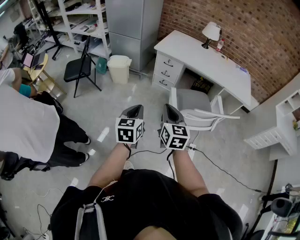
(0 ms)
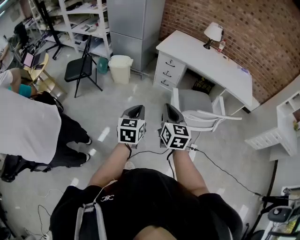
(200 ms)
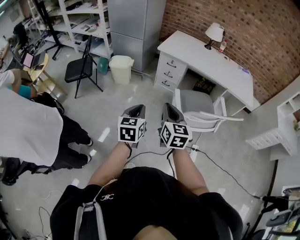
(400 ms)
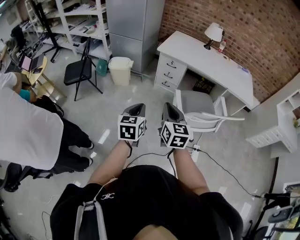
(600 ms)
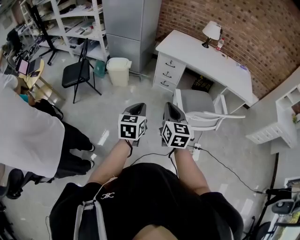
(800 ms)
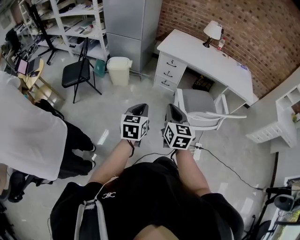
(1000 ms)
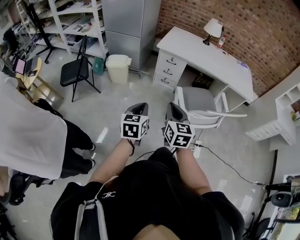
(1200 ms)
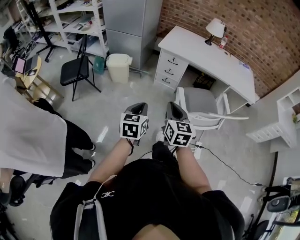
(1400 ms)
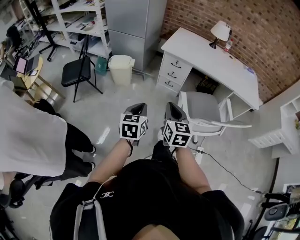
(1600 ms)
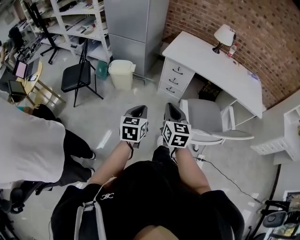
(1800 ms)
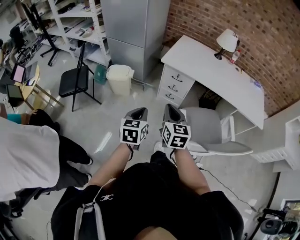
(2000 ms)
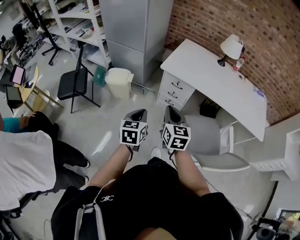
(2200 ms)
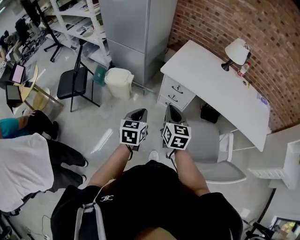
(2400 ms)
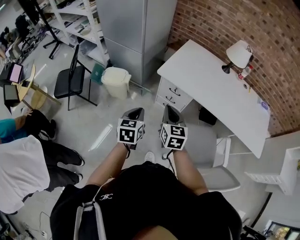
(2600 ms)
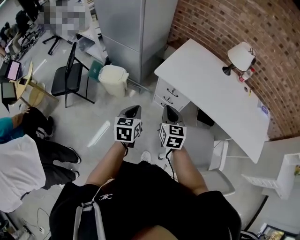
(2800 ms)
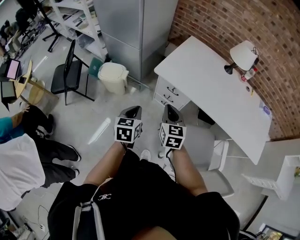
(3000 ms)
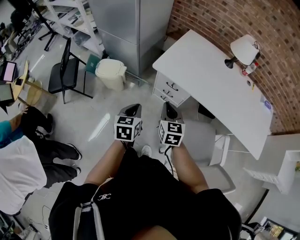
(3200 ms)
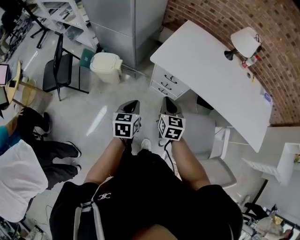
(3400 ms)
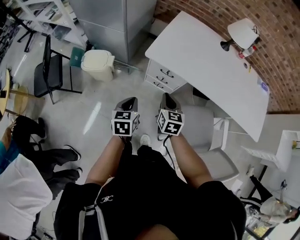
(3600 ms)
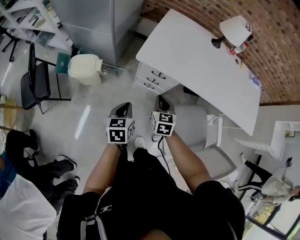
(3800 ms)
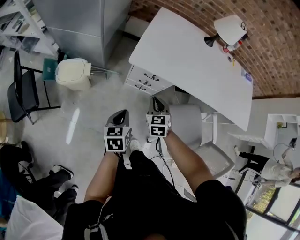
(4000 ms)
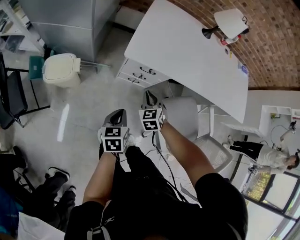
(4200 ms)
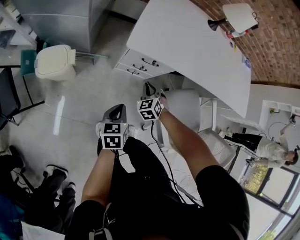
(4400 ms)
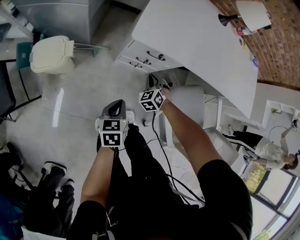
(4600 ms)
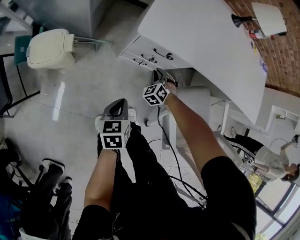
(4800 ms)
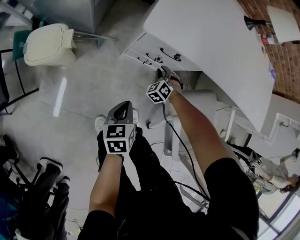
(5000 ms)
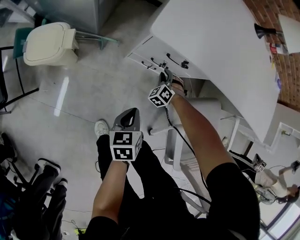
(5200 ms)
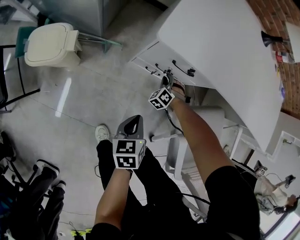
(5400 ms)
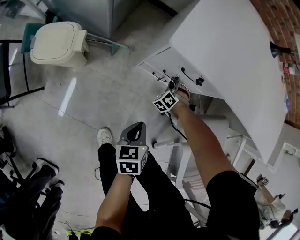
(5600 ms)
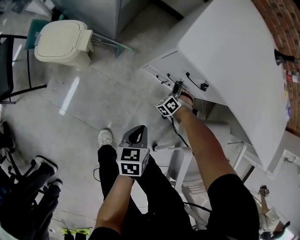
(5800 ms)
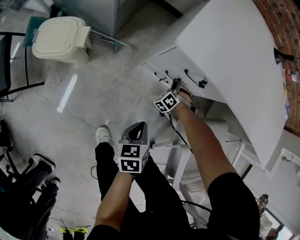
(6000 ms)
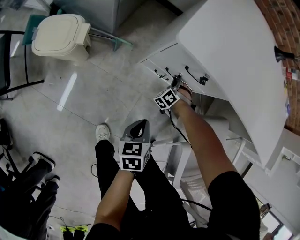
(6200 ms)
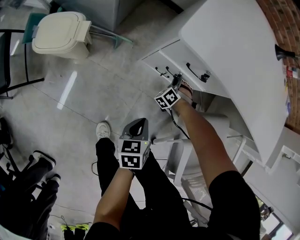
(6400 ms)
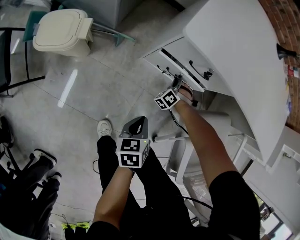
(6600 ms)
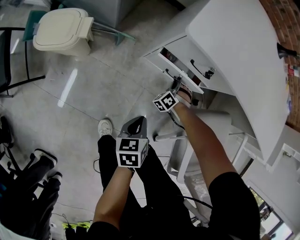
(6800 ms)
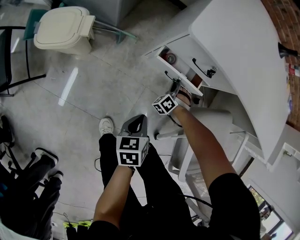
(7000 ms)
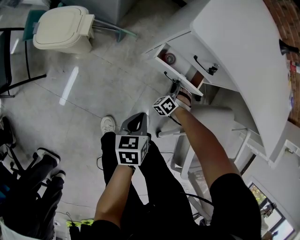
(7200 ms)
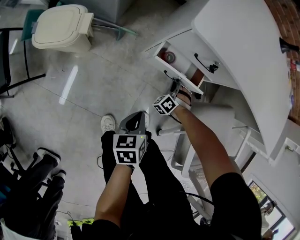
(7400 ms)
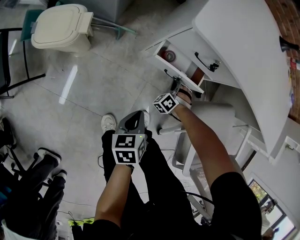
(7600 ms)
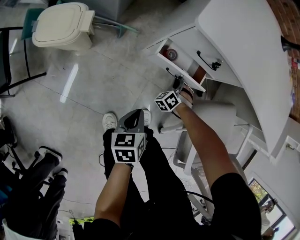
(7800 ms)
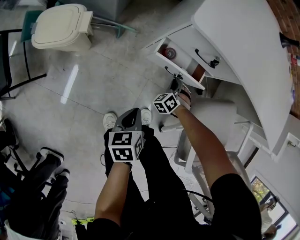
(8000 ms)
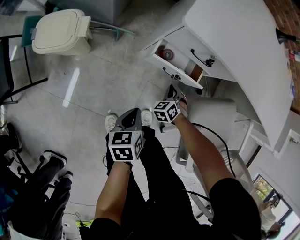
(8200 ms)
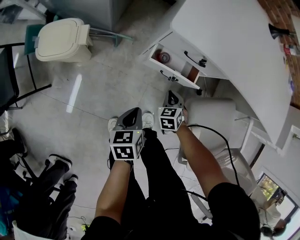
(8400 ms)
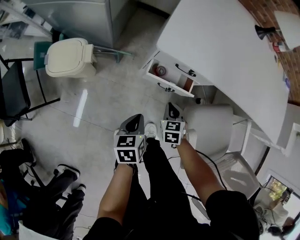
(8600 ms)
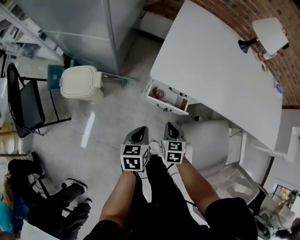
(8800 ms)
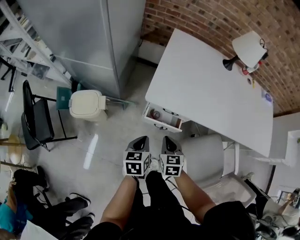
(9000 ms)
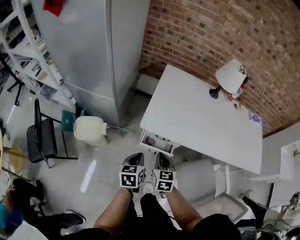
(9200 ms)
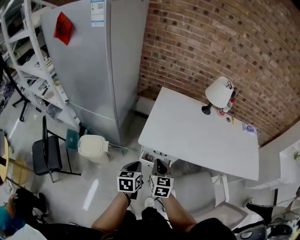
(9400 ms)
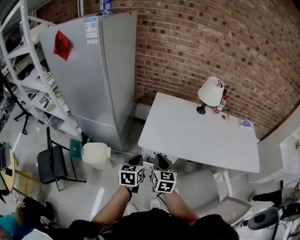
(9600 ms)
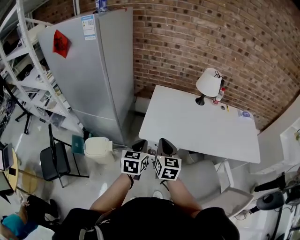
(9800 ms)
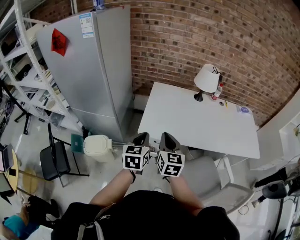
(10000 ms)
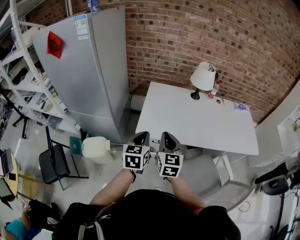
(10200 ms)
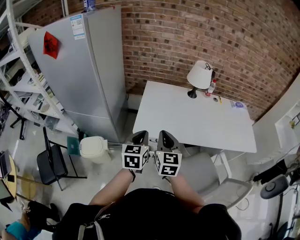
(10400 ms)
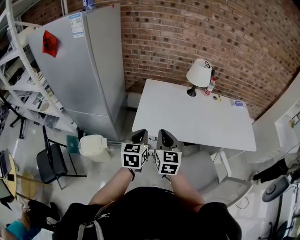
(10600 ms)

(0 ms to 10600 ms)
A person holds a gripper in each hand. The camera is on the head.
0 ms - 1600 ms: Both grippers travel together forward and to the left, about 15 cm.
1600 ms - 3000 ms: The two grippers travel together, forward, approximately 40 cm.
3000 ms - 4600 ms: The grippers both shift downward by some 35 cm. The left gripper rotates roughly 30 degrees; the right gripper changes its angle by some 50 degrees.
4600 ms - 6000 ms: The right gripper heads downward and forward, covering approximately 25 cm, and turns by some 30 degrees, while the left gripper moves downward, some 15 cm.
6000 ms - 7600 ms: The right gripper heads backward, covering about 10 cm. Meanwhile the left gripper shifts by some 5 cm.
7600 ms - 9000 ms: The left gripper goes some 25 cm upward. Meanwhile the right gripper goes some 40 cm upward, and rotates around the line of its fingers by approximately 70 degrees, clockwise from behind.
9000 ms - 10600 ms: The grippers both shift upward by about 30 cm. The left gripper turns by approximately 30 degrees. The right gripper tips its fingers upward by some 30 degrees.

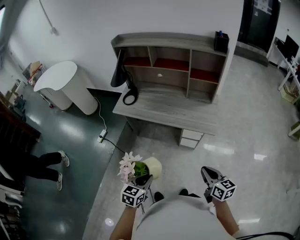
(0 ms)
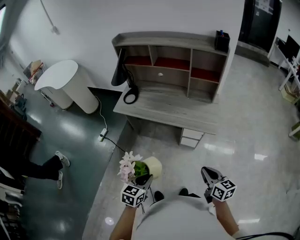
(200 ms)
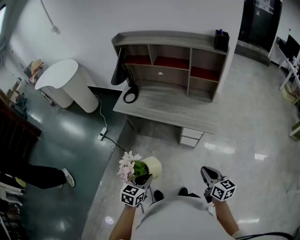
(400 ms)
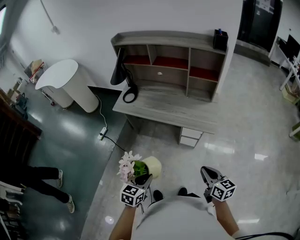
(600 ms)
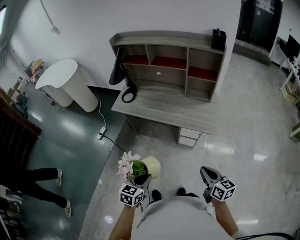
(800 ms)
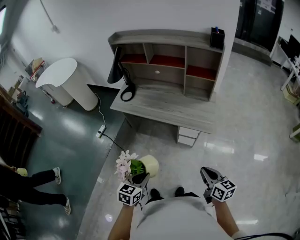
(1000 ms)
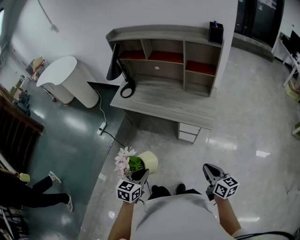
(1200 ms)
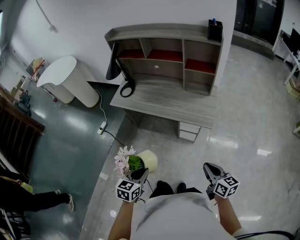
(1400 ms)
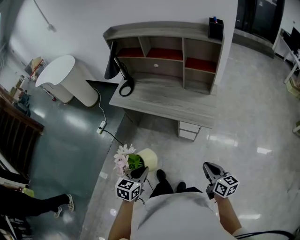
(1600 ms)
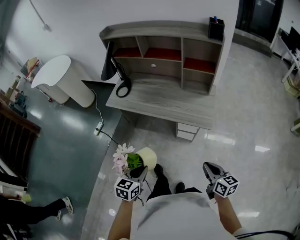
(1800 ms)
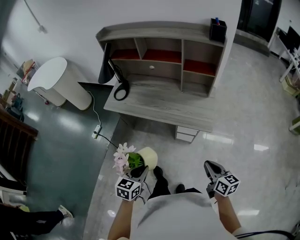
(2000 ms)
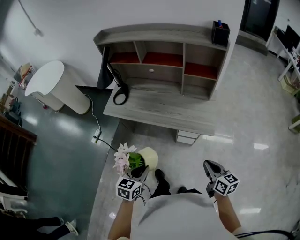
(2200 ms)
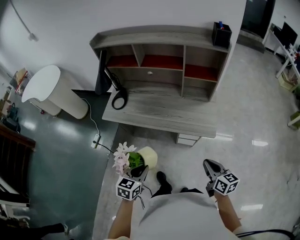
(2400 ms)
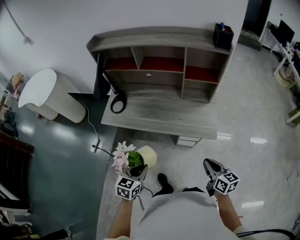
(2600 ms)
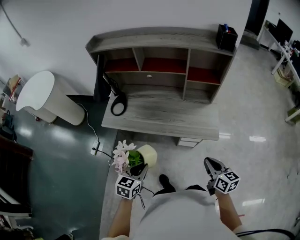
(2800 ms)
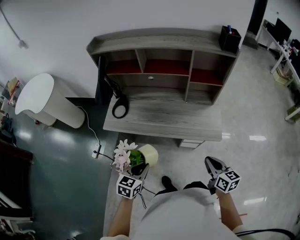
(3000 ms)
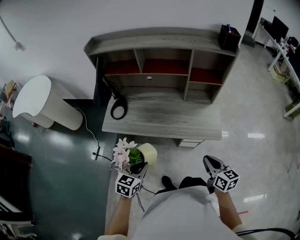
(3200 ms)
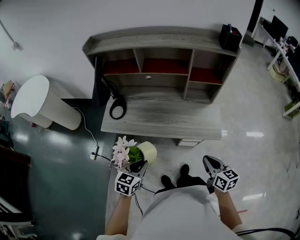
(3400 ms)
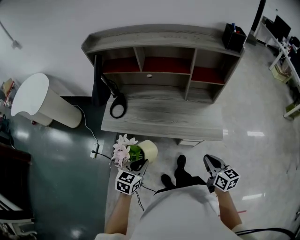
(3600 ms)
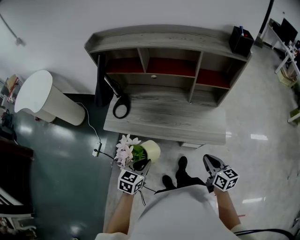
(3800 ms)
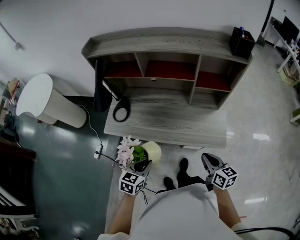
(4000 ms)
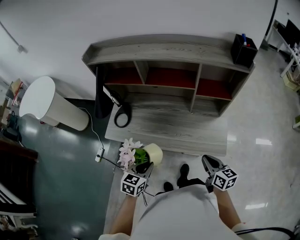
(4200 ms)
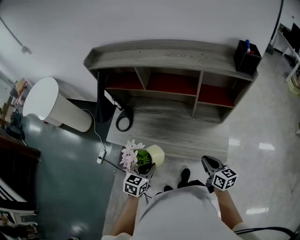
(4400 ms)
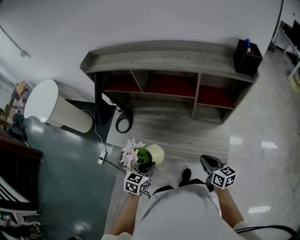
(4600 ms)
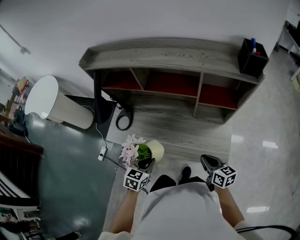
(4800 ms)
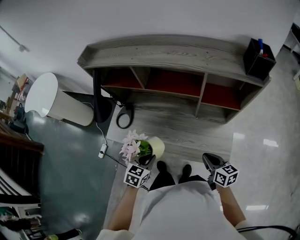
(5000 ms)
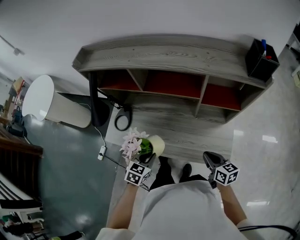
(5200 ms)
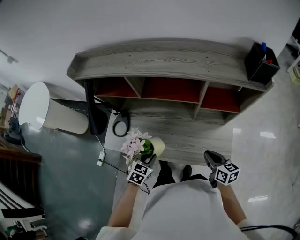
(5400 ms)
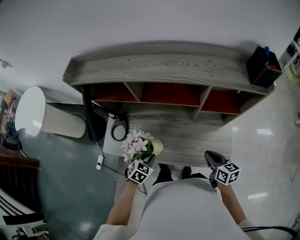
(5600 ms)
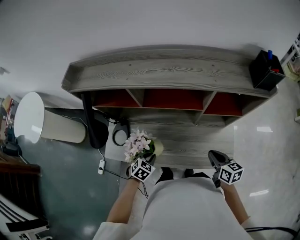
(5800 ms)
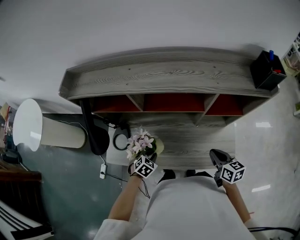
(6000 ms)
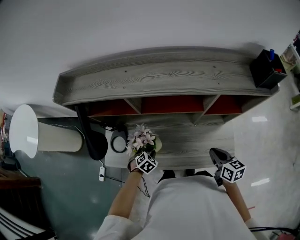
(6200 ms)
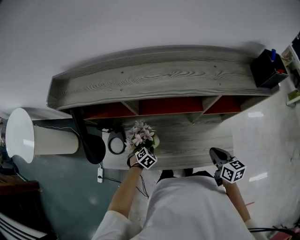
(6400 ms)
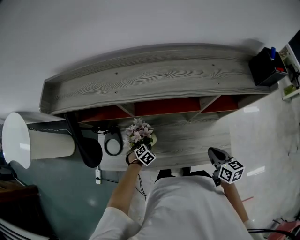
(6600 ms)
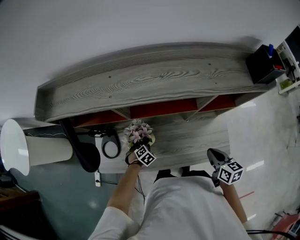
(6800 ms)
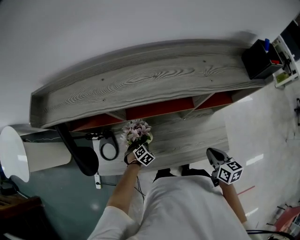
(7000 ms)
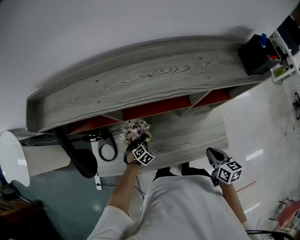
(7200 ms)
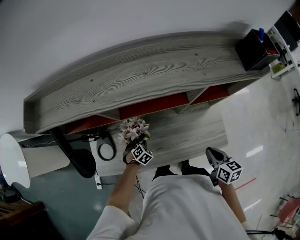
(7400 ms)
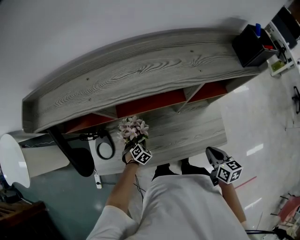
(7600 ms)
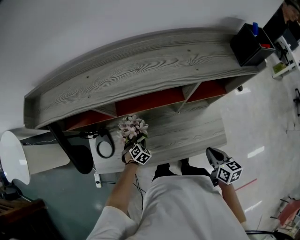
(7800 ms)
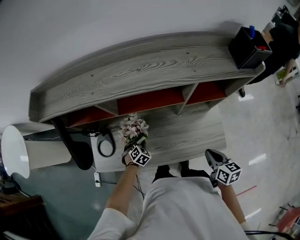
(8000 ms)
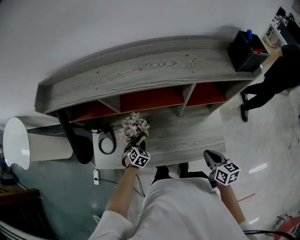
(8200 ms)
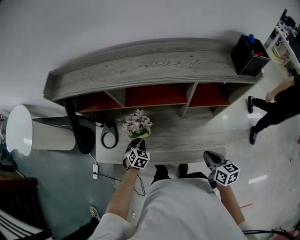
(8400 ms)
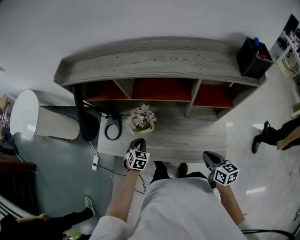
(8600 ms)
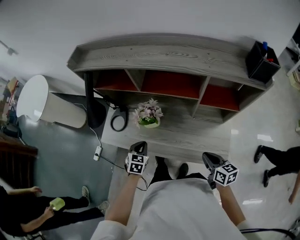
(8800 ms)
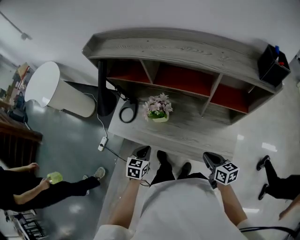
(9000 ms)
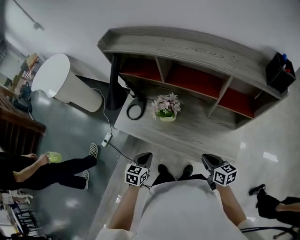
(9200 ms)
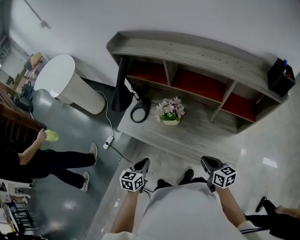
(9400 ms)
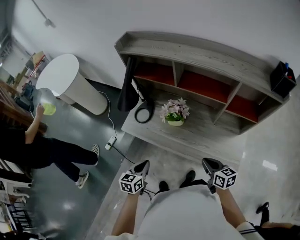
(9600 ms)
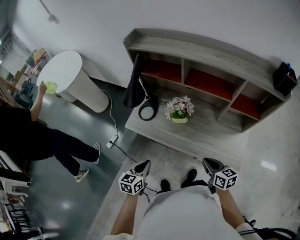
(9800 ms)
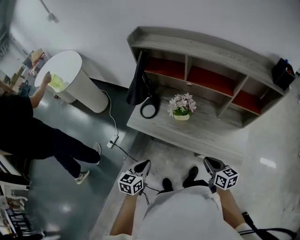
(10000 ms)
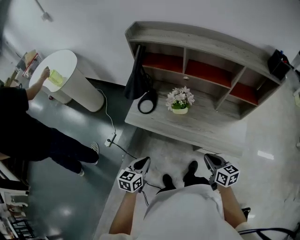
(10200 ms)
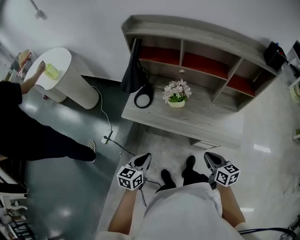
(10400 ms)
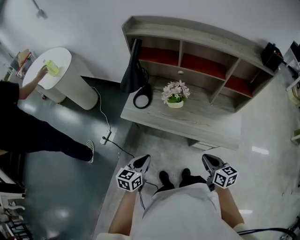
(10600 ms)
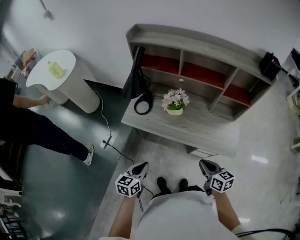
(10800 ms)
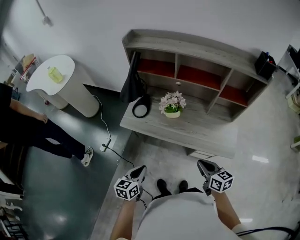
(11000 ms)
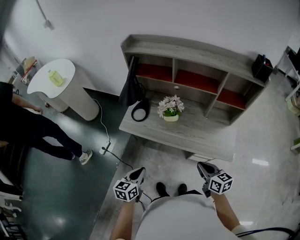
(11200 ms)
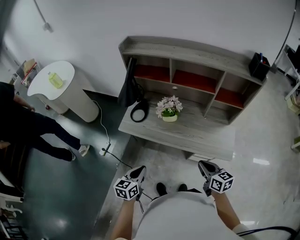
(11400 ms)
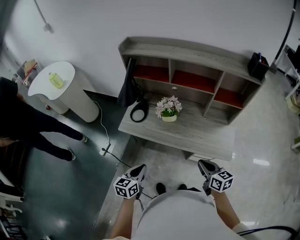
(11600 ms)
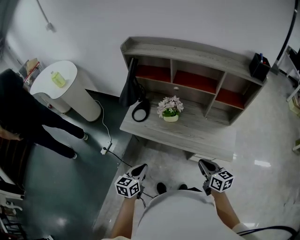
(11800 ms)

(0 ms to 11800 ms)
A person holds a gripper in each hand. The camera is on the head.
0 ms - 1400 ms: The right gripper moves to the right, roughly 10 cm. The left gripper shifts by about 5 cm.
1400 ms - 3000 ms: The grippers both shift forward and to the left by roughly 25 cm.
3000 ms - 4400 ms: The two grippers go approximately 15 cm forward.
4400 ms - 6000 ms: The right gripper shifts approximately 15 cm forward. The left gripper travels forward and downward by approximately 25 cm, and swivels some 40 degrees.
6000 ms - 7400 ms: The left gripper heads downward and forward, covering some 15 cm, and turns by approximately 20 degrees.
7400 ms - 8800 ms: The left gripper heads upward, covering about 15 cm, and rotates around the line of its fingers by approximately 40 degrees, counterclockwise from behind. Meanwhile the right gripper swivels about 30 degrees.
8800 ms - 10400 ms: The right gripper heads to the left and backward, covering roughly 25 cm. Meanwhile the left gripper moves backward and to the left, about 30 cm, and changes its angle by roughly 30 degrees.
10400 ms - 11800 ms: The left gripper changes place by roughly 5 cm, while the right gripper ends up approximately 5 cm from where it was.

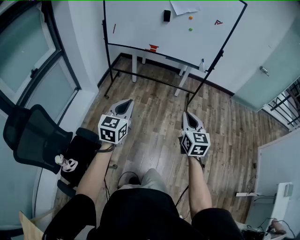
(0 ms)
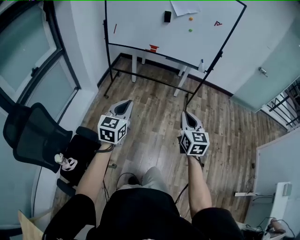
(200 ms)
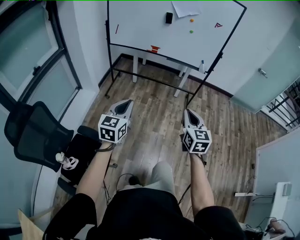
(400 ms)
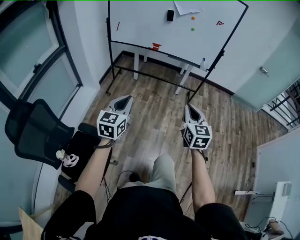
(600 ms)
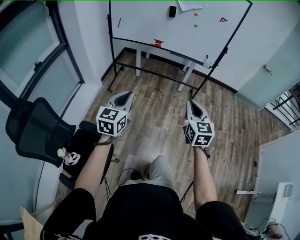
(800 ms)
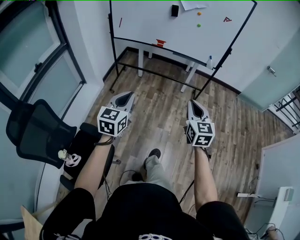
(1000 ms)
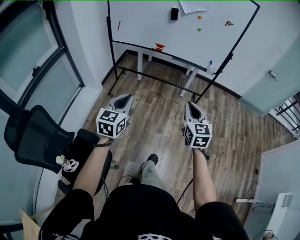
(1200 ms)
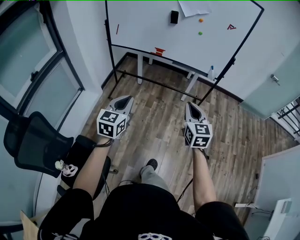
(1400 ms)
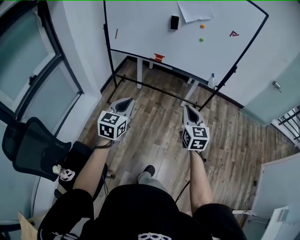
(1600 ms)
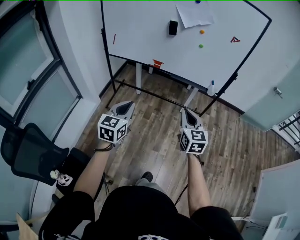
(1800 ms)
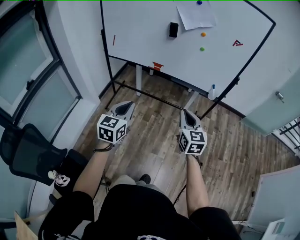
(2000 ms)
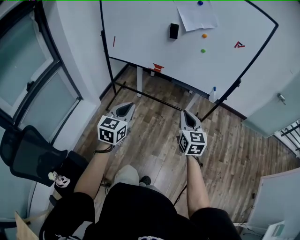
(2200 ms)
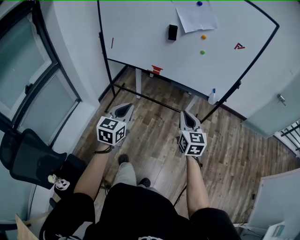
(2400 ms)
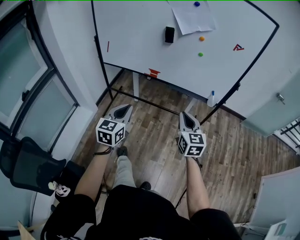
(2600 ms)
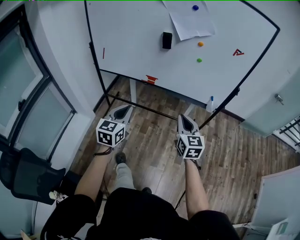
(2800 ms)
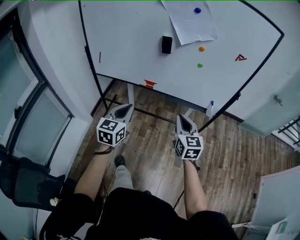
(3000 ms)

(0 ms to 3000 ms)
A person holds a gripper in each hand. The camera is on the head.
0 ms - 1600 ms: The two grippers go about 20 cm forward.
1600 ms - 3000 ms: The grippers both shift forward by approximately 25 cm.
